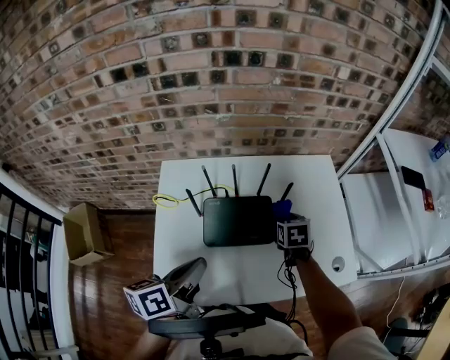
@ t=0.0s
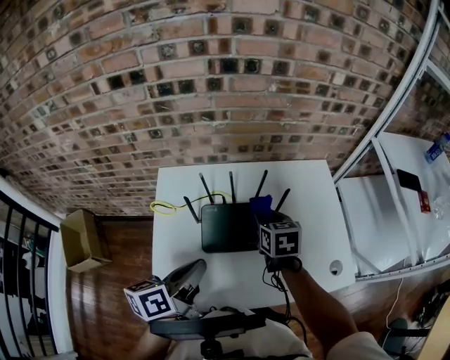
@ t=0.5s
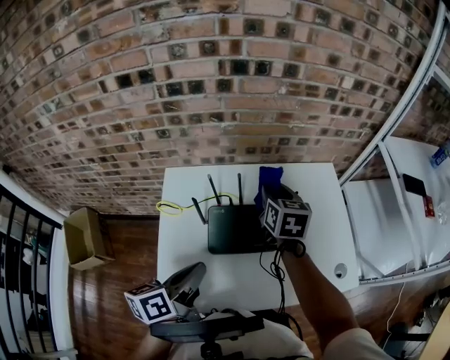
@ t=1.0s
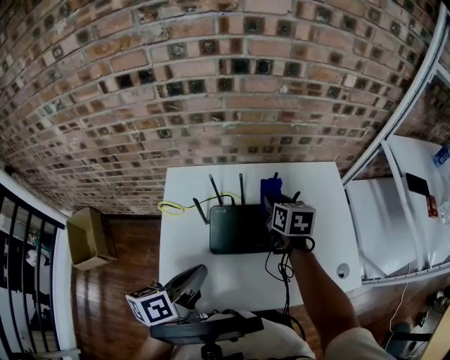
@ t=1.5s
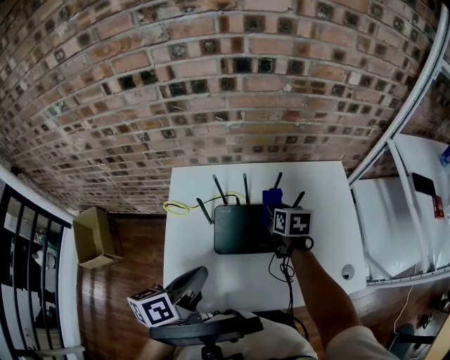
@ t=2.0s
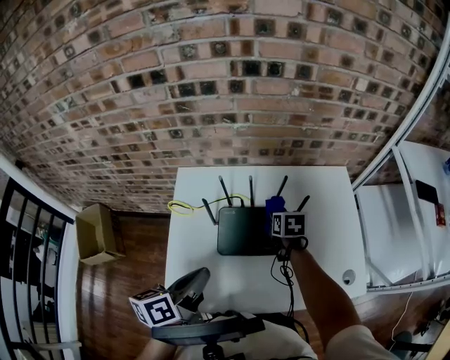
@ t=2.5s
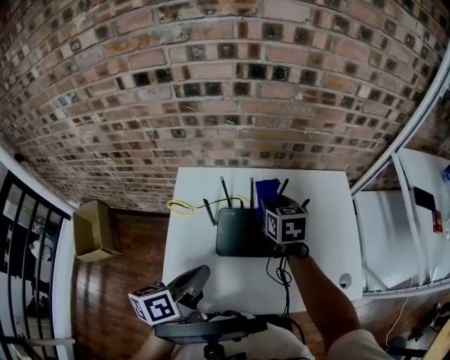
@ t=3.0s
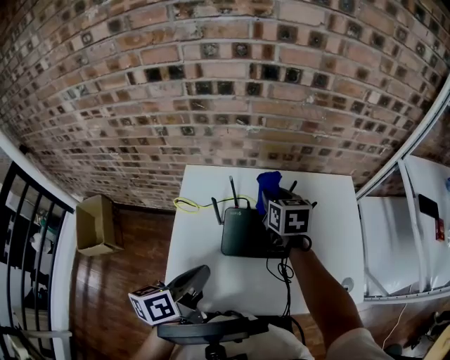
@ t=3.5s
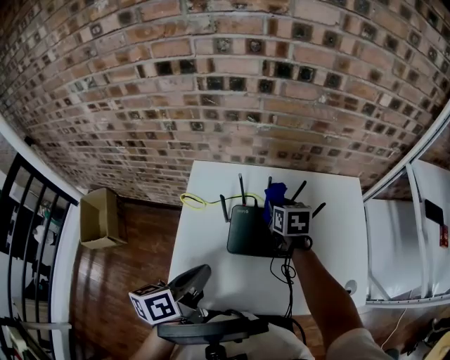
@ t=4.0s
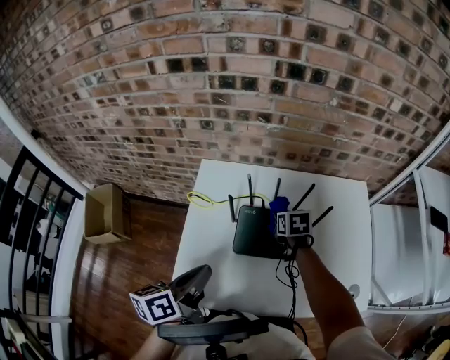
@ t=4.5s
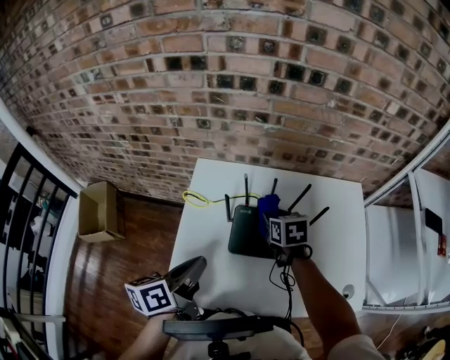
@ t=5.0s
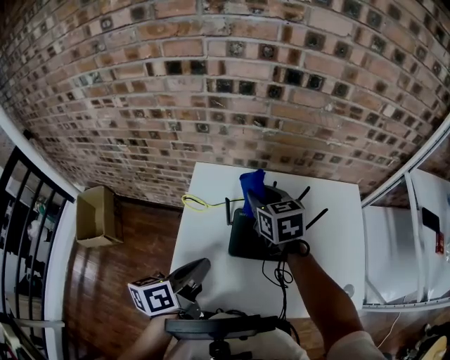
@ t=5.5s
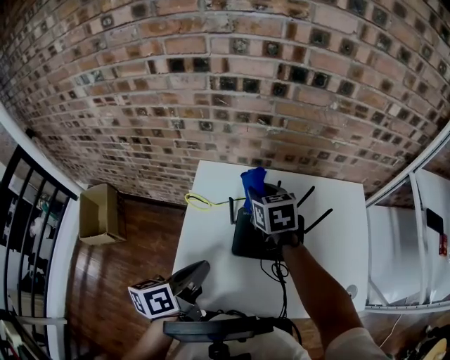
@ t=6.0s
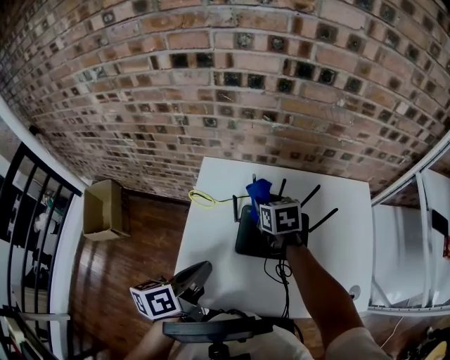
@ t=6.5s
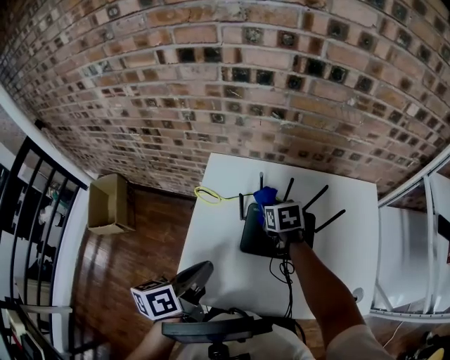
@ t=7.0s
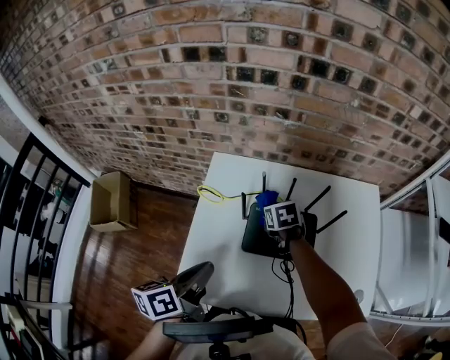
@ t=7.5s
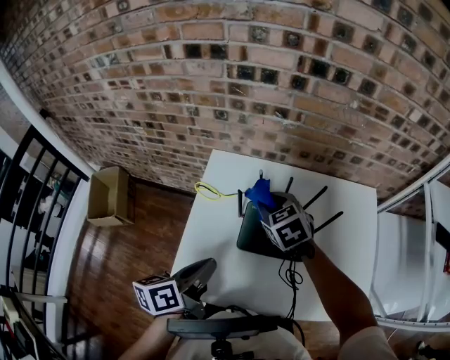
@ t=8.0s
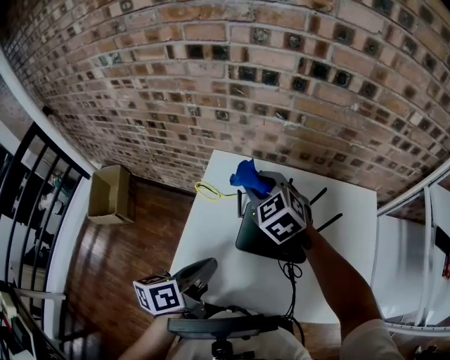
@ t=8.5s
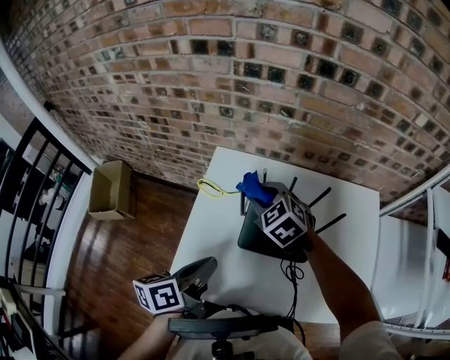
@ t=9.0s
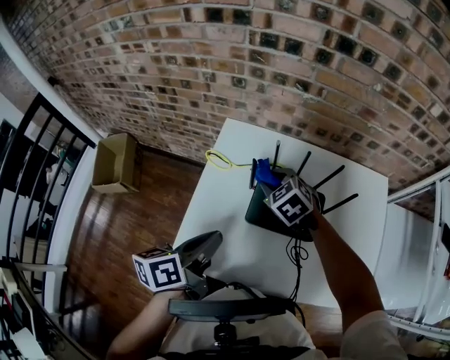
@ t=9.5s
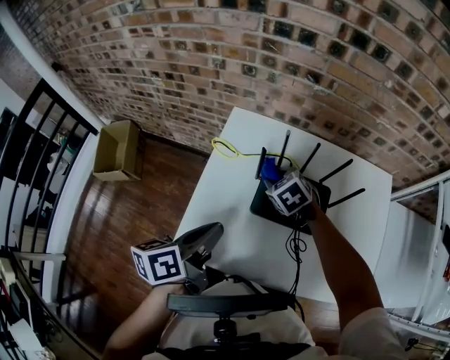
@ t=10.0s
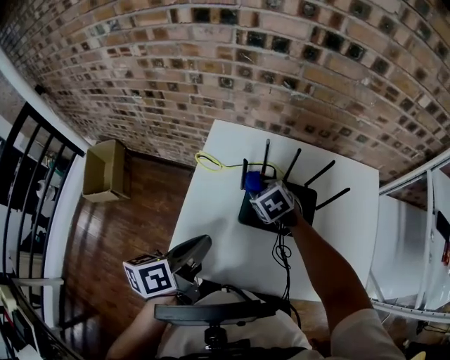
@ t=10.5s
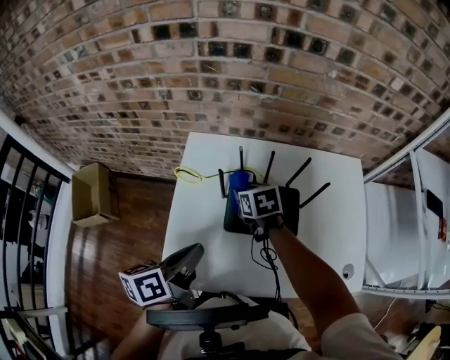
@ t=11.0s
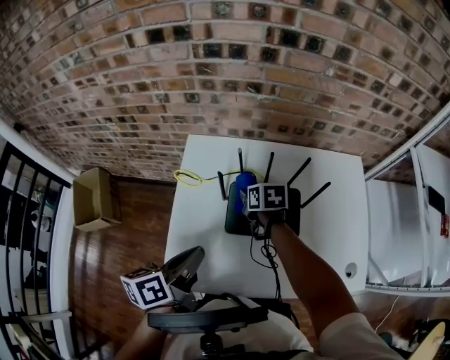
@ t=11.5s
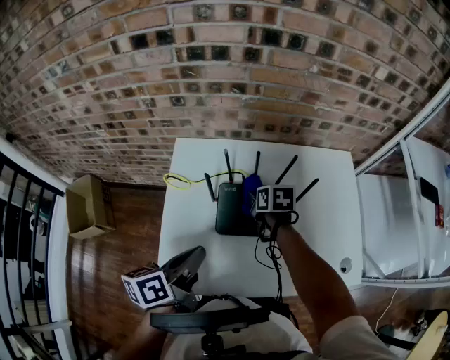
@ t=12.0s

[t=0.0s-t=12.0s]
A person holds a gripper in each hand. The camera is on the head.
t=0.0s to t=2.0s: The right gripper goes approximately 10 cm to the left, and moves approximately 15 cm upward and comes back.
t=2.0s to t=4.0s: The right gripper moves to the left, roughly 5 cm, and goes upward and returns, about 10 cm each way.
t=4.0s to t=6.0s: The right gripper is displaced to the left and upward by approximately 15 cm.
t=6.0s to t=8.0s: The right gripper moves some 15 cm downward and comes back, and changes its angle by some 20 degrees.
t=8.0s to t=10.0s: The right gripper goes about 10 cm downward.
t=10.0s to t=12.0s: The right gripper travels to the right by approximately 15 cm, and rolls clockwise, seen from behind, by approximately 60 degrees. The left gripper shifts by some 5 cm.

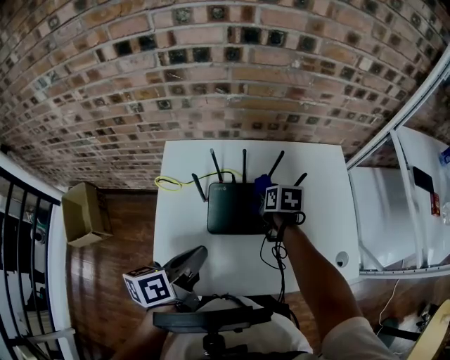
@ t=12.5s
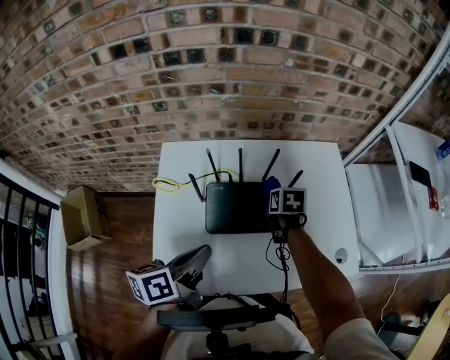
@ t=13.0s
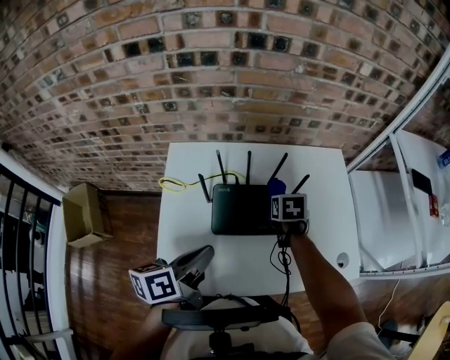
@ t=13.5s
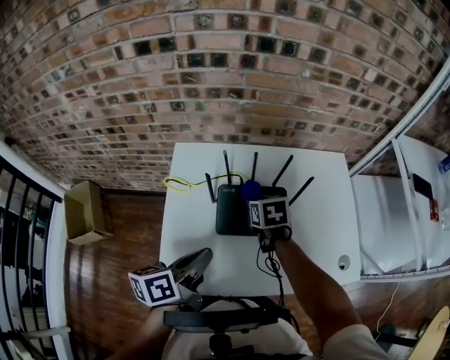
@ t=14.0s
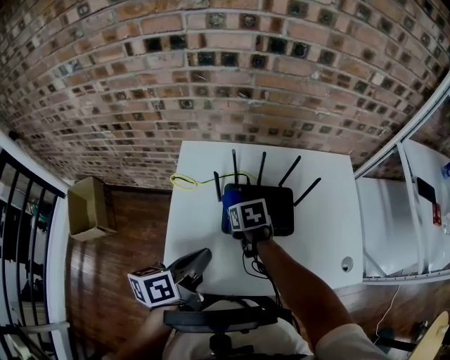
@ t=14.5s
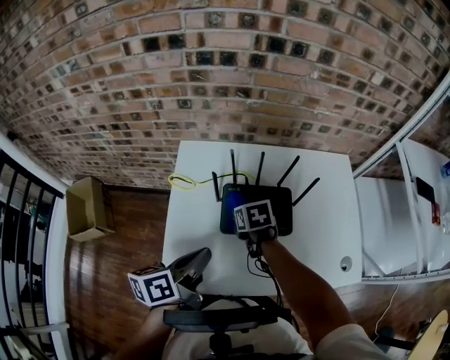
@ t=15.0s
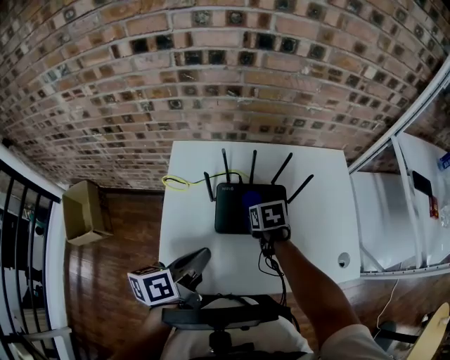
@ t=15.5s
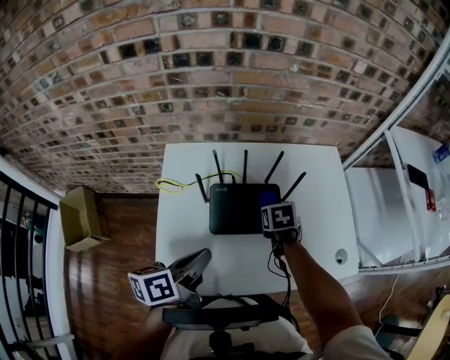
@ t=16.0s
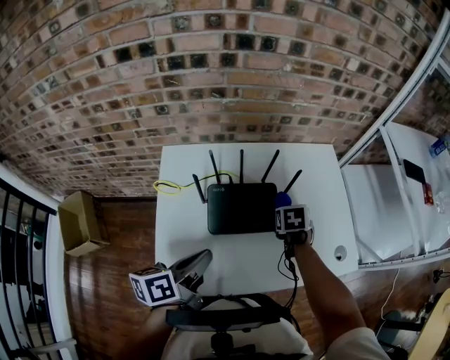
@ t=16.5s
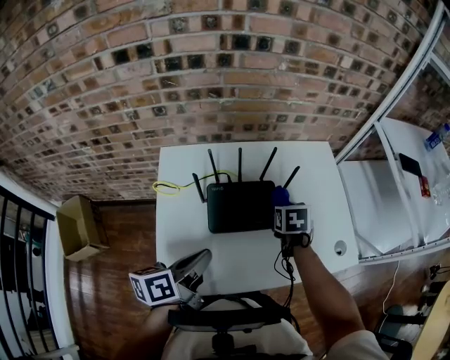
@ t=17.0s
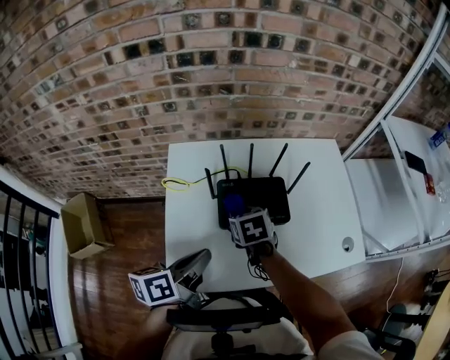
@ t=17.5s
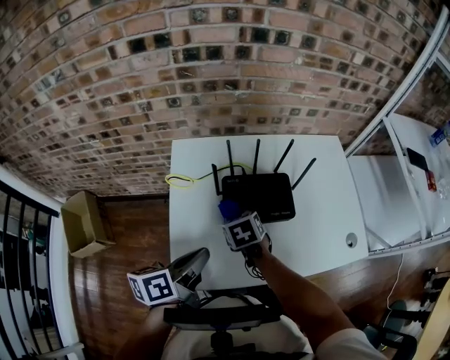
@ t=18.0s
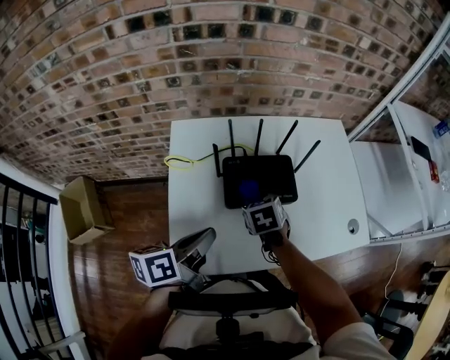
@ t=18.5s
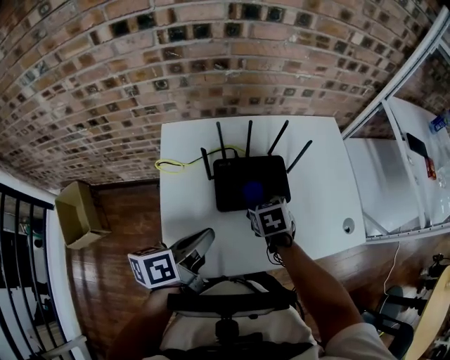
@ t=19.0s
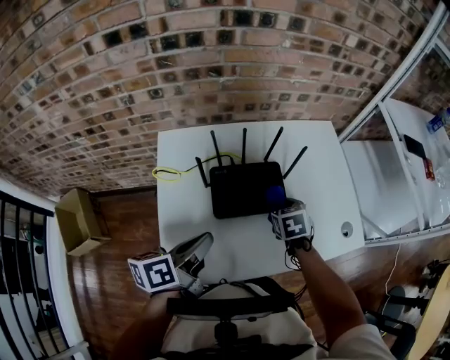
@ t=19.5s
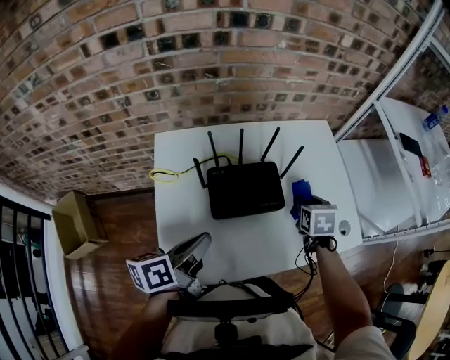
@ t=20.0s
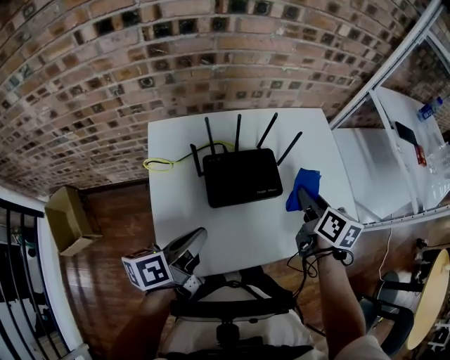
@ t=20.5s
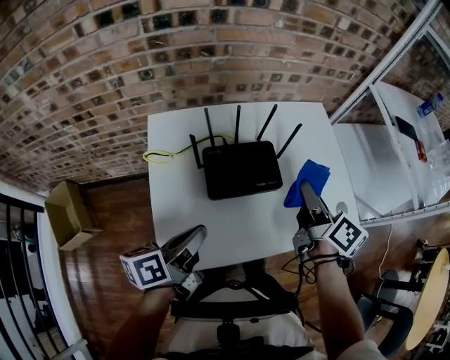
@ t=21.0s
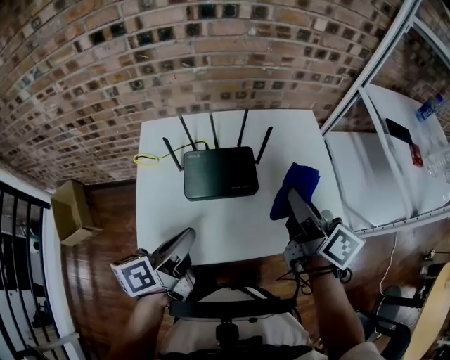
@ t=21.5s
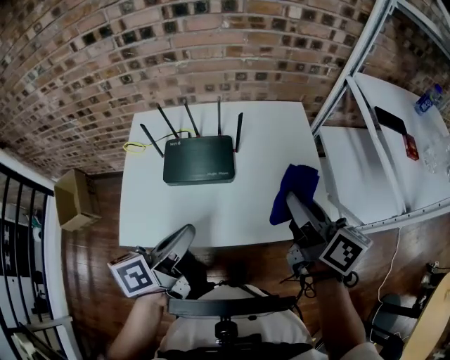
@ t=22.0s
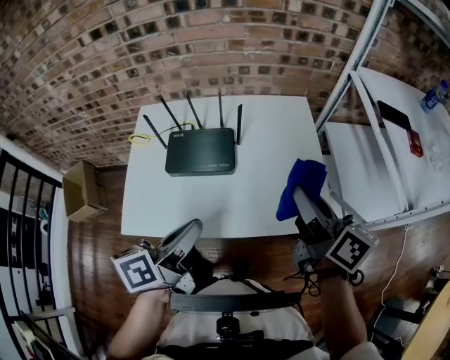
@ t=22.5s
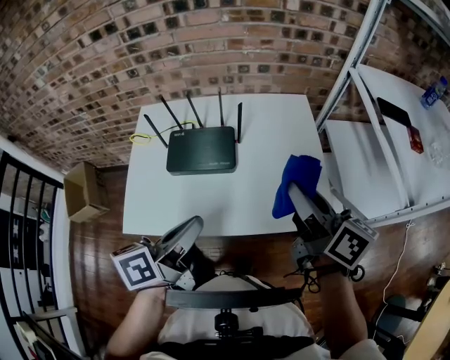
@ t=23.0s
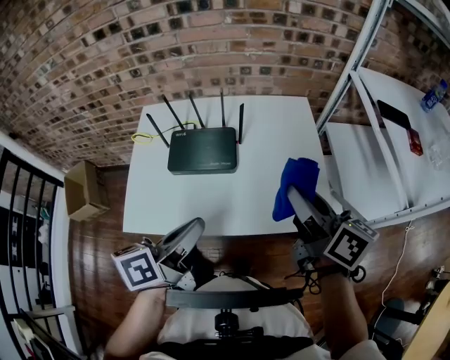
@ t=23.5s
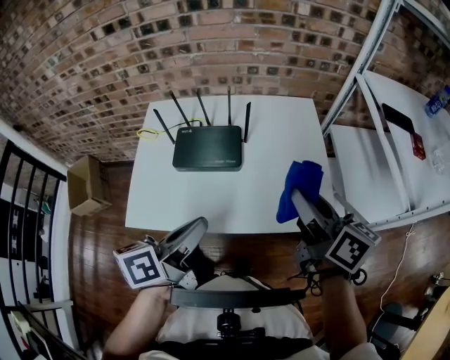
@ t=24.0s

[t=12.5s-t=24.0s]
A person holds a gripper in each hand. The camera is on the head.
t=12.5s to t=14.5s: The right gripper goes about 15 cm to the left and backward, and turns by approximately 20 degrees.
t=14.5s to t=16.5s: The right gripper shifts by roughly 25 cm, and changes its angle by roughly 30 degrees.
t=16.5s to t=18.5s: The right gripper moves to the left and backward, approximately 20 cm. Meanwhile the left gripper travels to the left by roughly 5 cm.
t=18.5s to t=20.0s: The right gripper moves to the right, approximately 20 cm, and rotates about 20 degrees.
t=20.0s to t=22.0s: The left gripper goes some 25 cm to the right, while the right gripper shifts roughly 30 cm upward, to the right and backward, and points its fingers roughly 50 degrees further upward.
t=22.0s to t=24.0s: The left gripper shifts by approximately 5 cm.

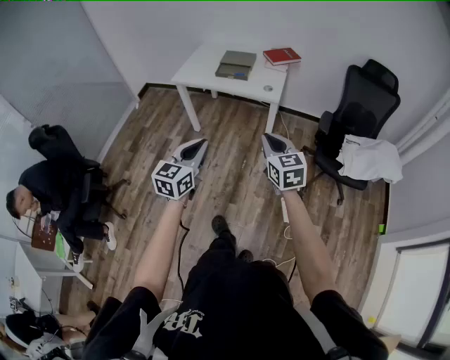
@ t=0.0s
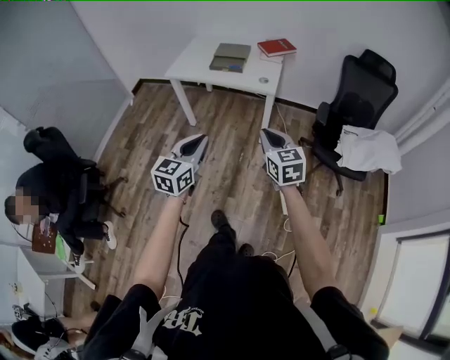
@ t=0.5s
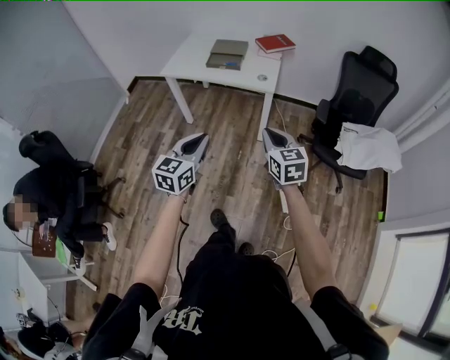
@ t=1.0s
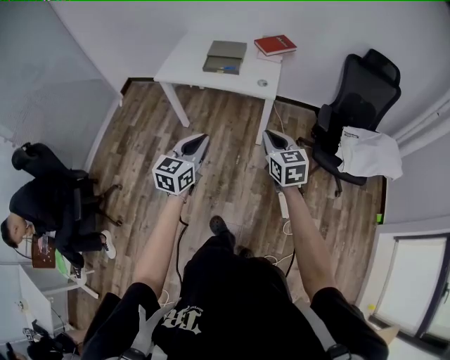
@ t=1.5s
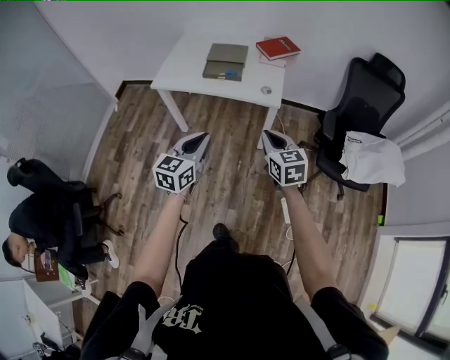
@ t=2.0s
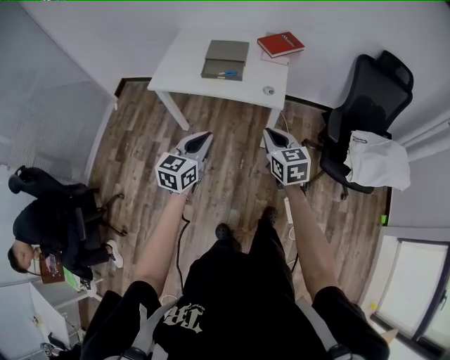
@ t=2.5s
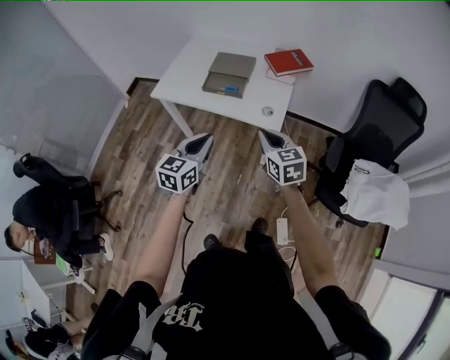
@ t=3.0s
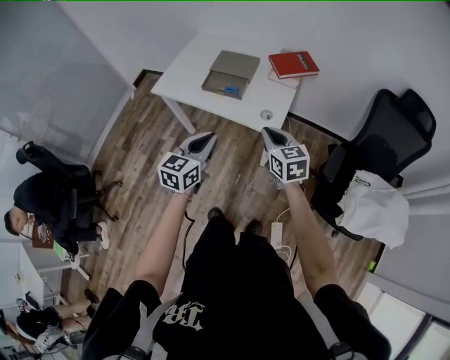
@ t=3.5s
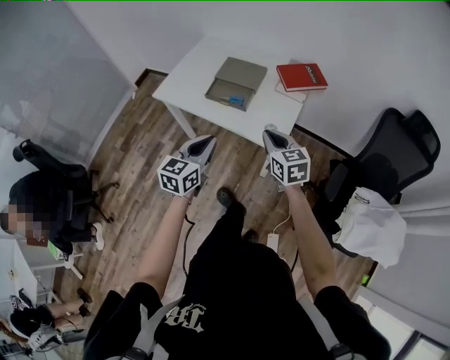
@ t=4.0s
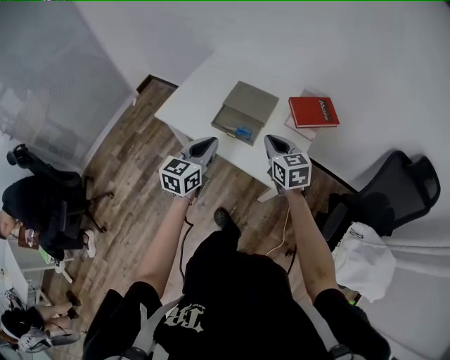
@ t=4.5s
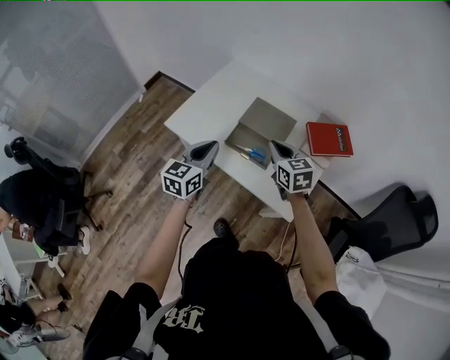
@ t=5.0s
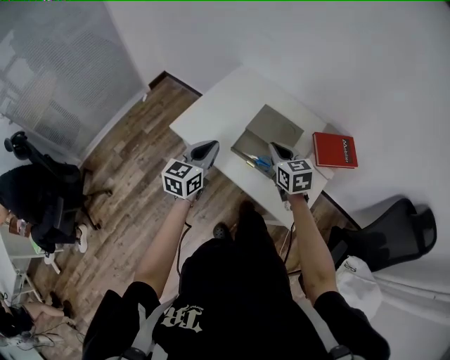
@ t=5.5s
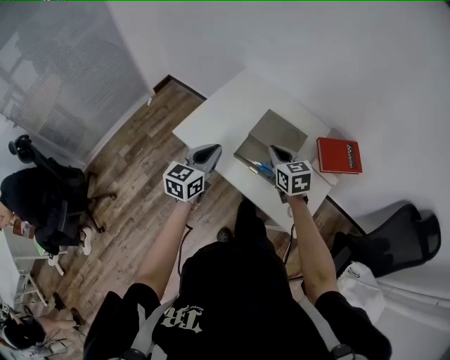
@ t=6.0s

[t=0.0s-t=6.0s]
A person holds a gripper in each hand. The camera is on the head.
t=0.0s to t=2.0s: Both grippers travel together forward, about 20 cm.
t=2.0s to t=4.0s: The left gripper is displaced forward and to the right by some 25 cm, while the right gripper heads forward, covering about 25 cm.
t=4.0s to t=6.0s: The grippers both shift forward and to the left by about 30 cm.
